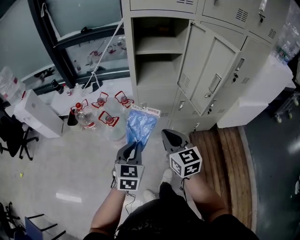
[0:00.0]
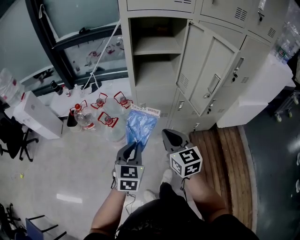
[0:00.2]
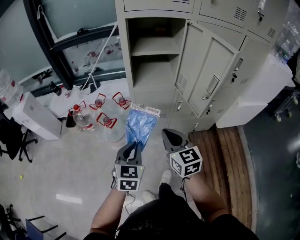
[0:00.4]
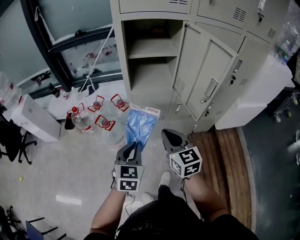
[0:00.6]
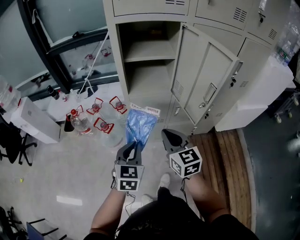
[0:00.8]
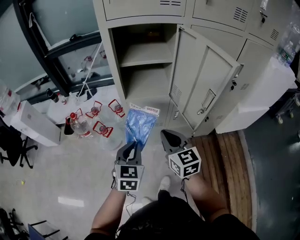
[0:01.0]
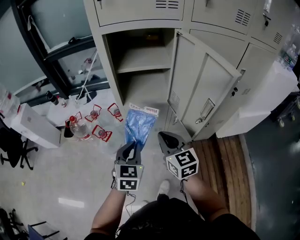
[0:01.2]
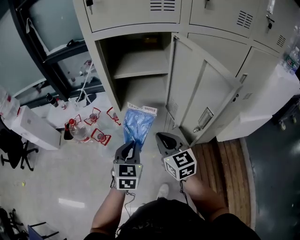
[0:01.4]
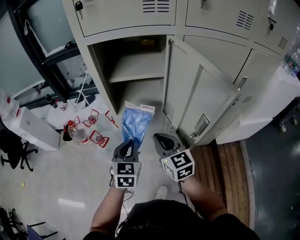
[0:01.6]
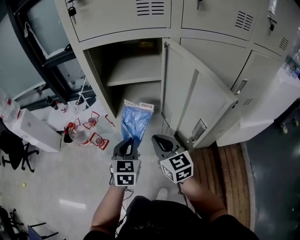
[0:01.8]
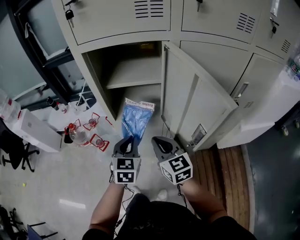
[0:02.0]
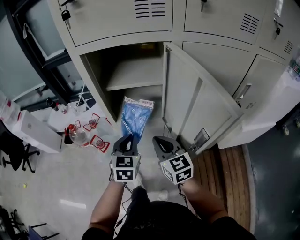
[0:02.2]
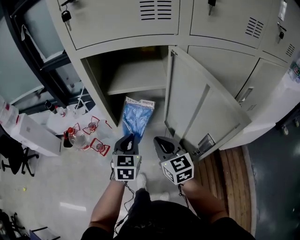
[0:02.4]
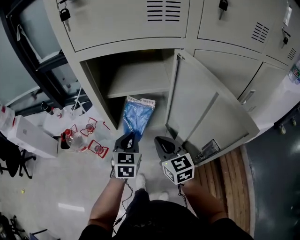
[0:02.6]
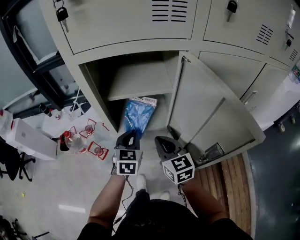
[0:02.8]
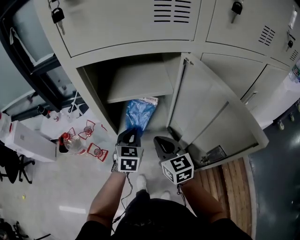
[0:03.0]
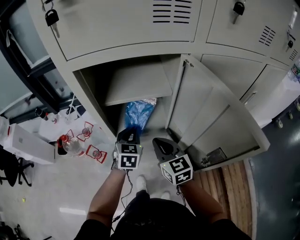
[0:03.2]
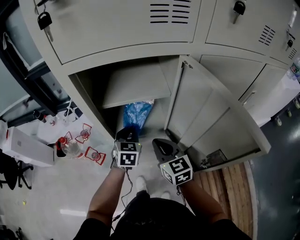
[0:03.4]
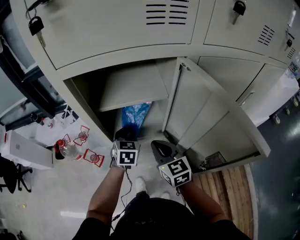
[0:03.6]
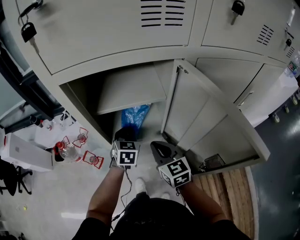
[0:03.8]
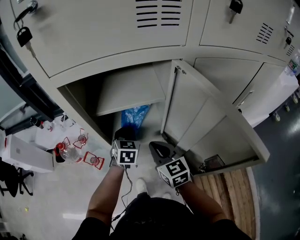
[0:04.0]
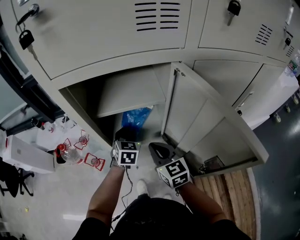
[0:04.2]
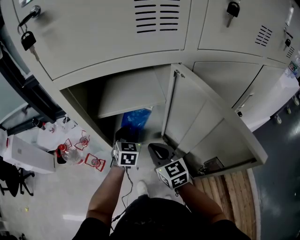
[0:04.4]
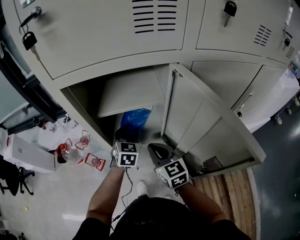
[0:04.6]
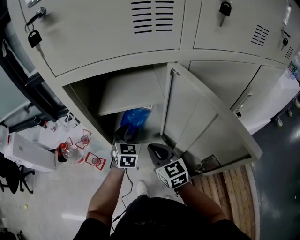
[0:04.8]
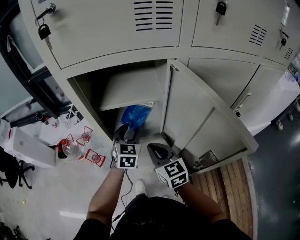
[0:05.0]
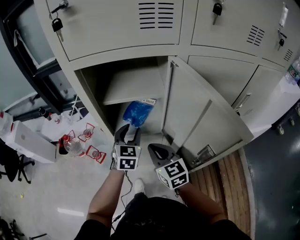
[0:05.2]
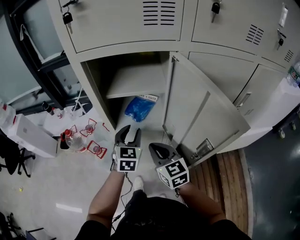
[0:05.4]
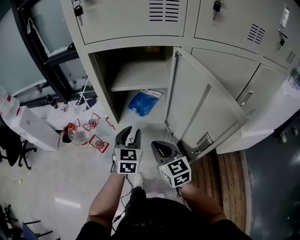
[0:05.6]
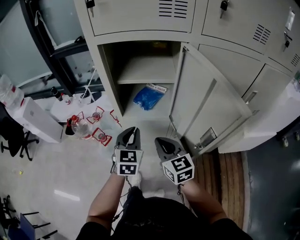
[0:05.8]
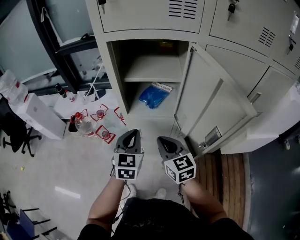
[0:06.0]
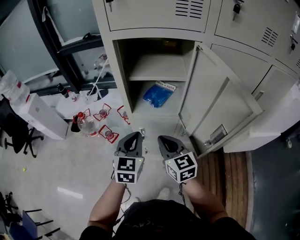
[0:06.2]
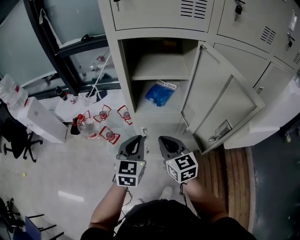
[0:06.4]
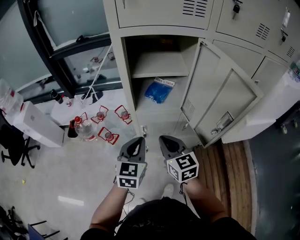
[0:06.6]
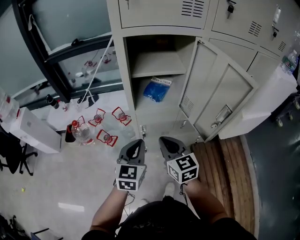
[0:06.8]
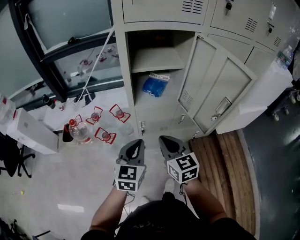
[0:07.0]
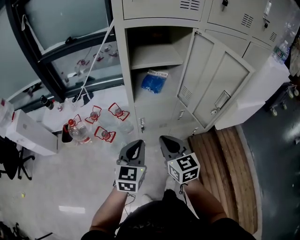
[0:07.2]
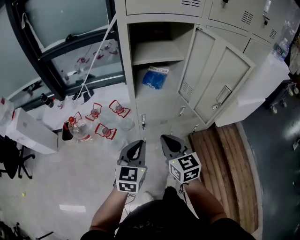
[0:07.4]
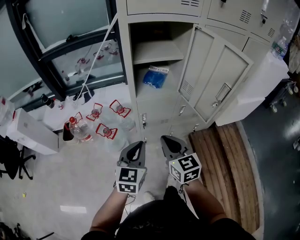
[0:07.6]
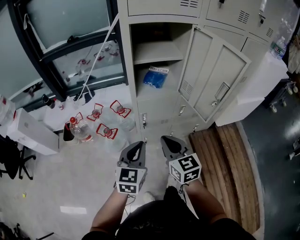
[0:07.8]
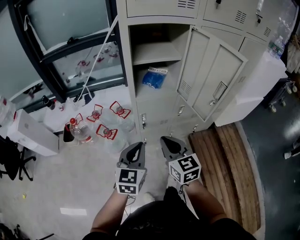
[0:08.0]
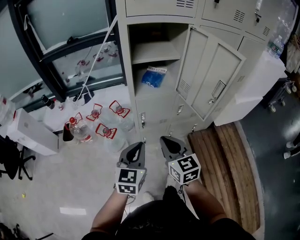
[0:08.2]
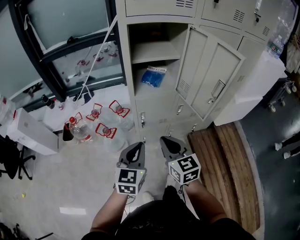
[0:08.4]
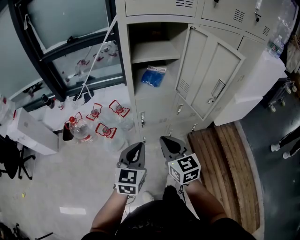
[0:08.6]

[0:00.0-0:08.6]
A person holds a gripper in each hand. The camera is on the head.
0:00.0 to 0:01.4: Both grippers travel together forward and to the right, roughly 20 cm.
0:01.4 to 0:02.8: The right gripper travels forward by roughly 10 cm; the left gripper is displaced forward by roughly 15 cm.
0:02.8 to 0:04.4: The left gripper travels forward by roughly 10 cm, and opens.
0:04.4 to 0:05.8: The right gripper heads backward, covering approximately 10 cm. The left gripper travels backward by roughly 15 cm, and closes.
0:05.8 to 0:07.2: The right gripper goes some 15 cm to the left and backward, while the left gripper travels backward and to the left by roughly 15 cm.
0:07.2 to 0:08.6: Both grippers move backward, roughly 5 cm.

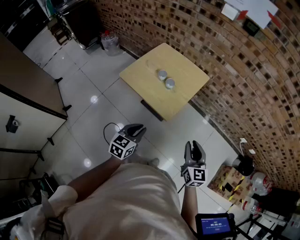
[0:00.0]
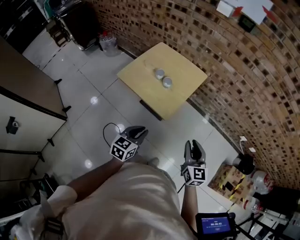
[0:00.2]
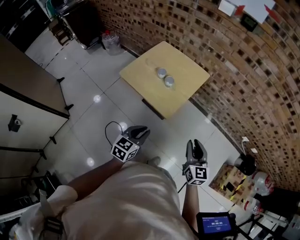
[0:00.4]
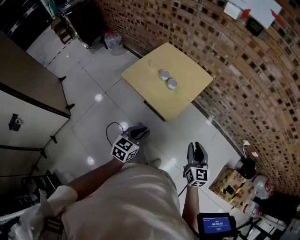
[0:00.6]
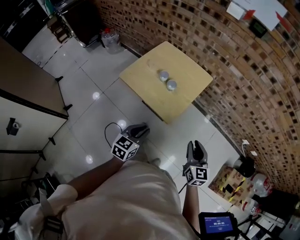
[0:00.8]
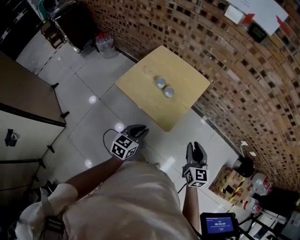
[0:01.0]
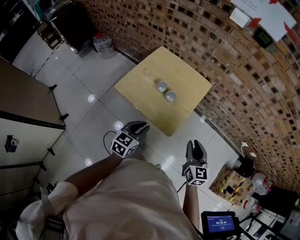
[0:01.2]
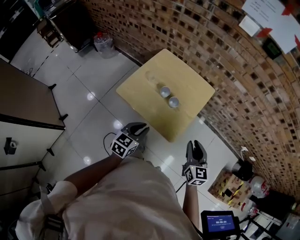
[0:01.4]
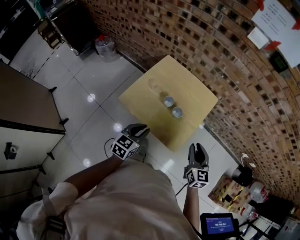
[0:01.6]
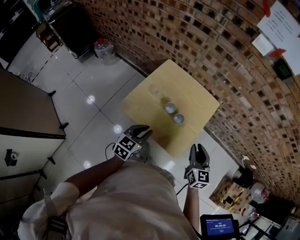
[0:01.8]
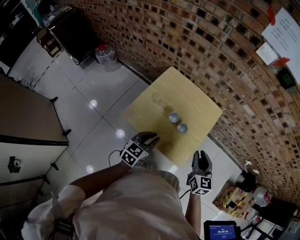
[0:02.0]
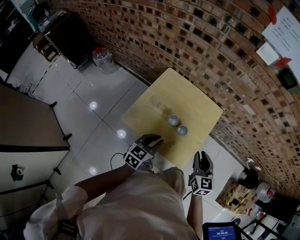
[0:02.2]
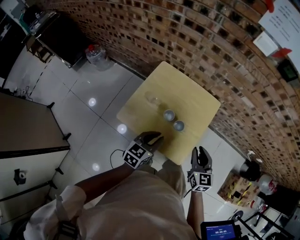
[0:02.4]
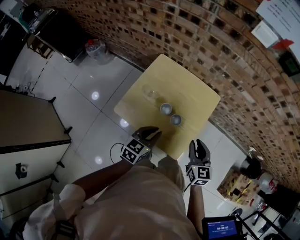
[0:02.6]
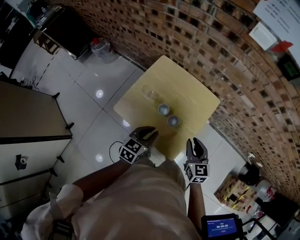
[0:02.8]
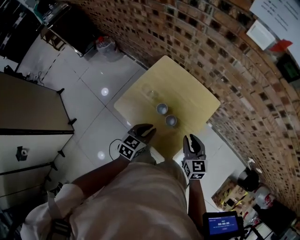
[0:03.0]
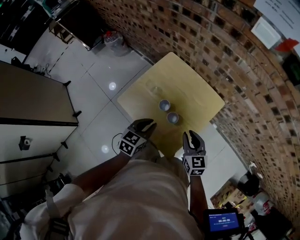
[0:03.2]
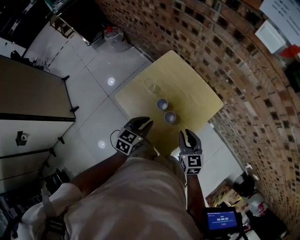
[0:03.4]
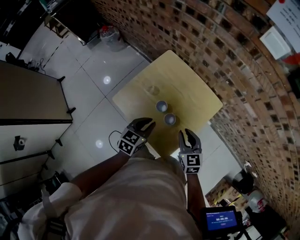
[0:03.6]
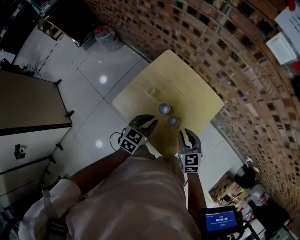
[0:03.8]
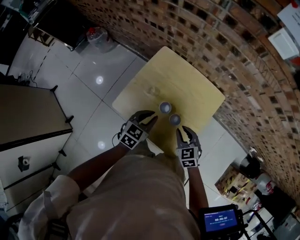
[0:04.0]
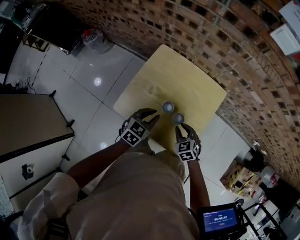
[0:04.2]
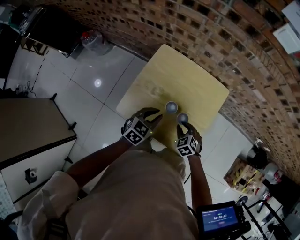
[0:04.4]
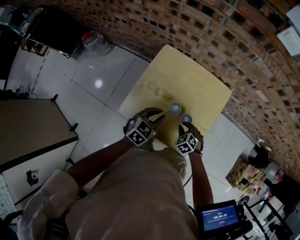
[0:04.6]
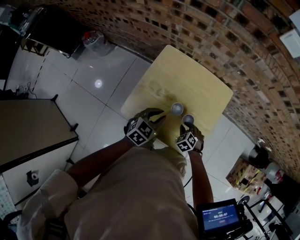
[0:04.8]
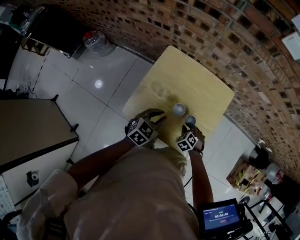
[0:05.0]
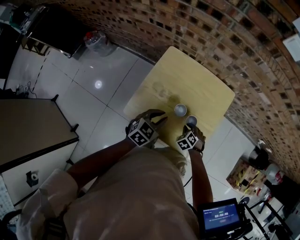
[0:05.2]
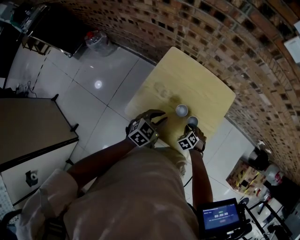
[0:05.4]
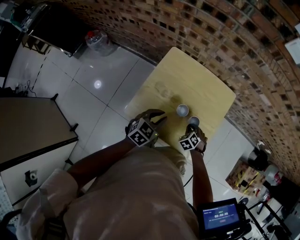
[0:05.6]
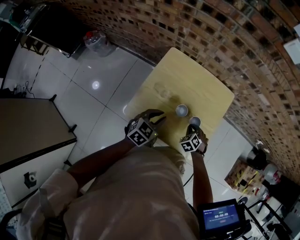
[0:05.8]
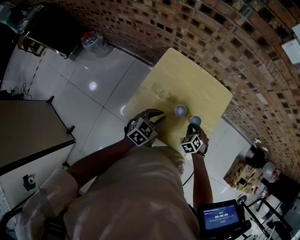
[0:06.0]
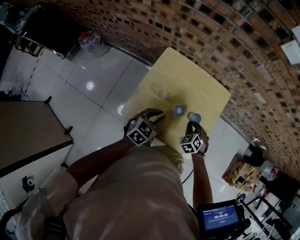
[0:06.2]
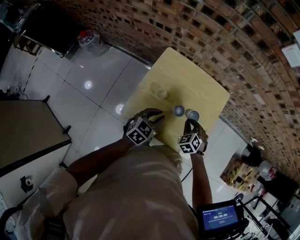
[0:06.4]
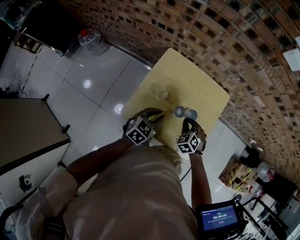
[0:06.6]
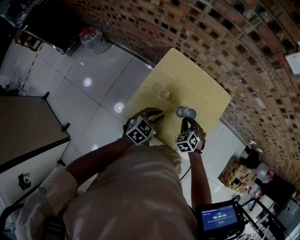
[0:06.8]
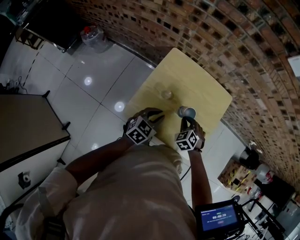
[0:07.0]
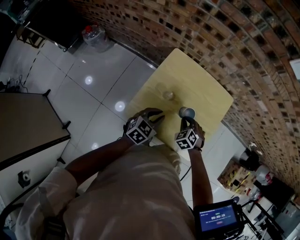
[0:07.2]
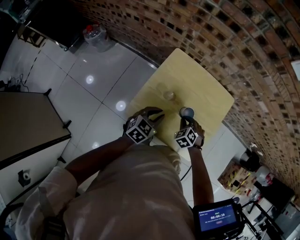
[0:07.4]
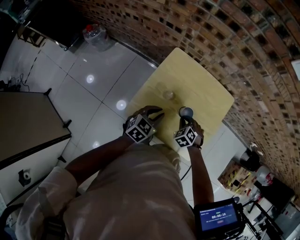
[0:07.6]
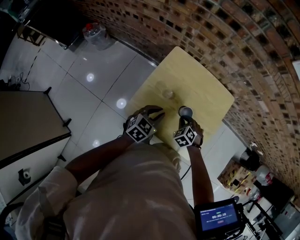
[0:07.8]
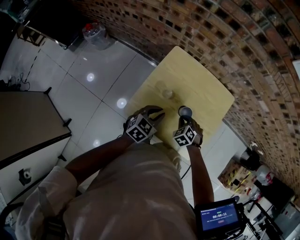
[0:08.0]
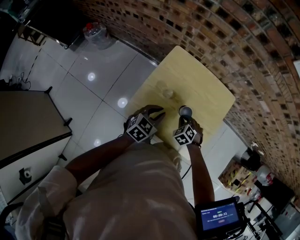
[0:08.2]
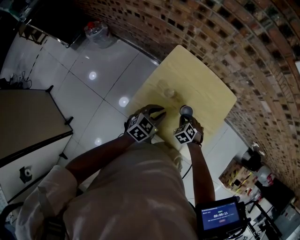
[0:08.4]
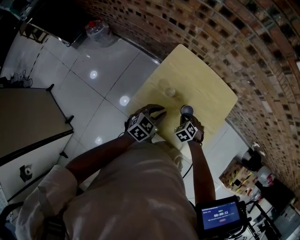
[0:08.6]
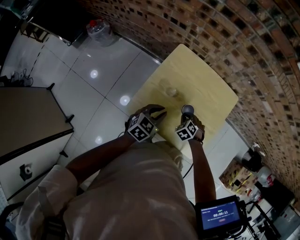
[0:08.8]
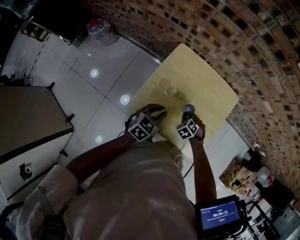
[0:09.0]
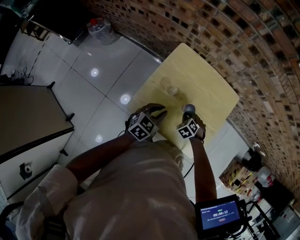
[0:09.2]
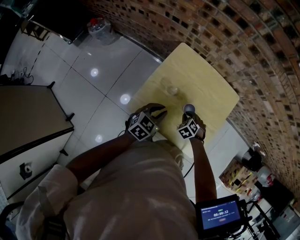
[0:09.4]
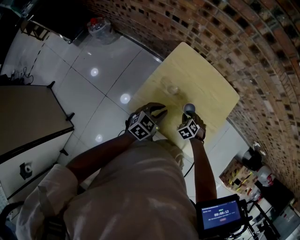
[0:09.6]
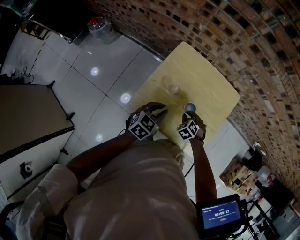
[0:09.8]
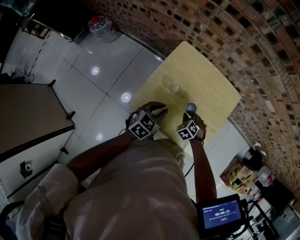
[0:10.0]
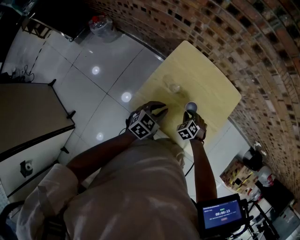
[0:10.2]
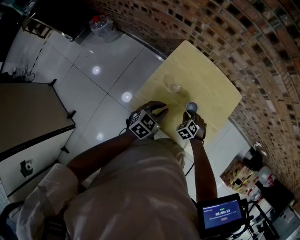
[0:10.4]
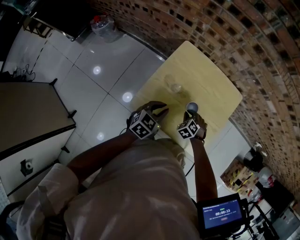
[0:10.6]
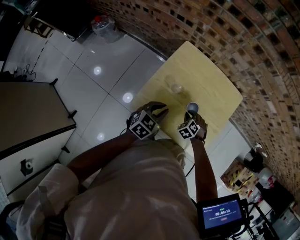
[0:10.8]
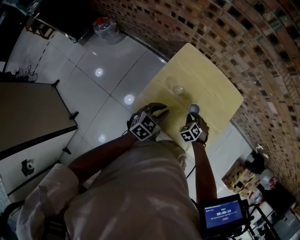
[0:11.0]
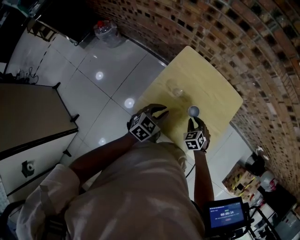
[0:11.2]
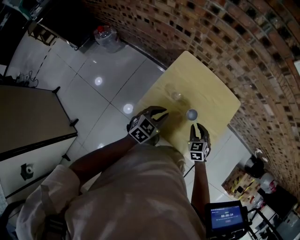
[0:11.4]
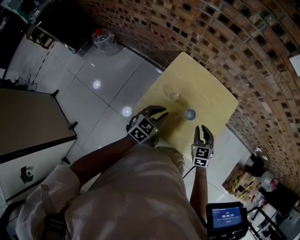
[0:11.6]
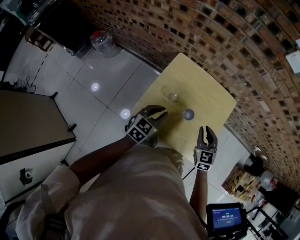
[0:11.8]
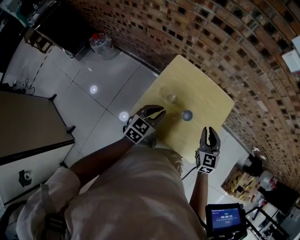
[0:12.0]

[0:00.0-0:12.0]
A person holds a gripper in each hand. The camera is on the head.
0:00.0 to 0:01.6: Both grippers move forward and to the left, roughly 25 cm.
0:01.6 to 0:03.0: The left gripper is displaced forward and to the right by about 15 cm. Meanwhile the right gripper moves forward, some 15 cm.
0:03.0 to 0:04.4: The left gripper goes roughly 10 cm forward and to the left, and changes its angle by some 20 degrees. The right gripper goes some 20 cm downward and to the left, and angles its fingers downward, by some 30 degrees.
0:06.0 to 0:07.6: The right gripper heads to the left, covering some 10 cm.
0:07.6 to 0:10.4: The grippers stay close to where they were, moving slightly.
0:10.4 to 0:12.0: The right gripper heads upward, covering roughly 25 cm, and angles its fingers upward, by approximately 40 degrees, while the left gripper is displaced upward by approximately 5 cm.

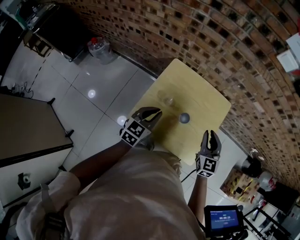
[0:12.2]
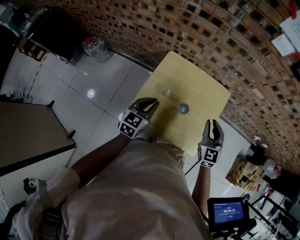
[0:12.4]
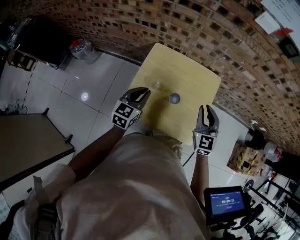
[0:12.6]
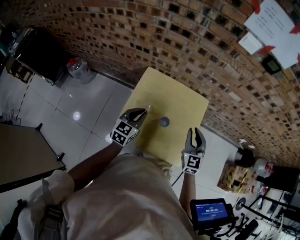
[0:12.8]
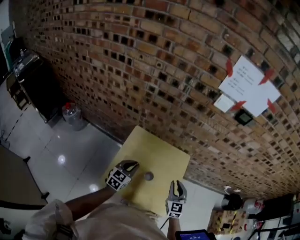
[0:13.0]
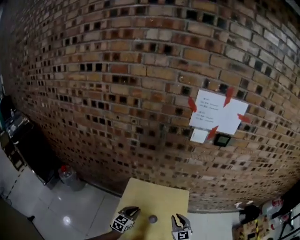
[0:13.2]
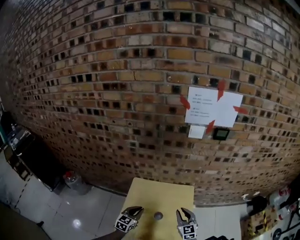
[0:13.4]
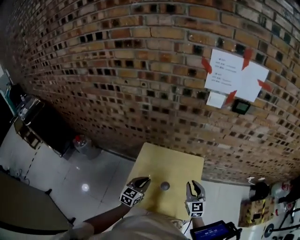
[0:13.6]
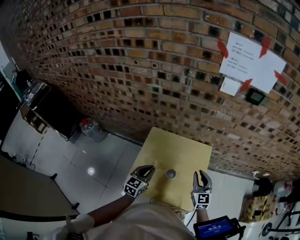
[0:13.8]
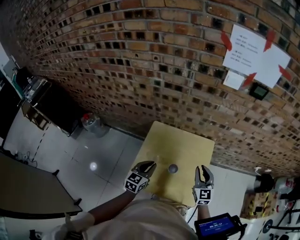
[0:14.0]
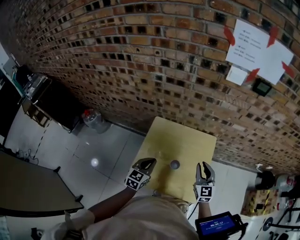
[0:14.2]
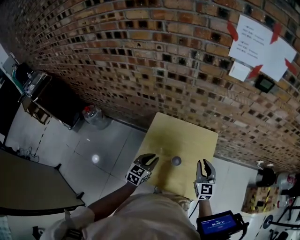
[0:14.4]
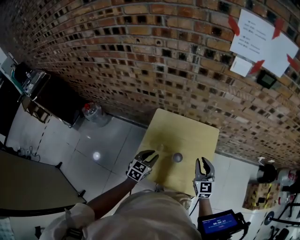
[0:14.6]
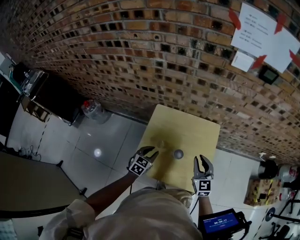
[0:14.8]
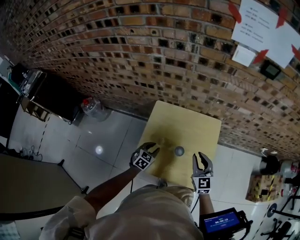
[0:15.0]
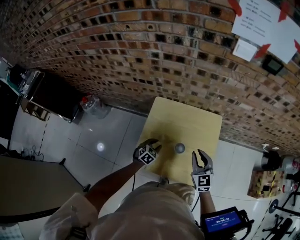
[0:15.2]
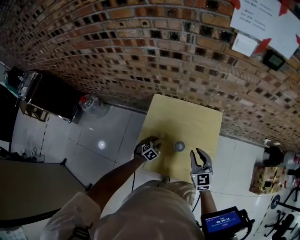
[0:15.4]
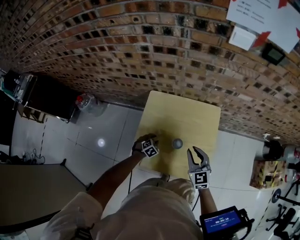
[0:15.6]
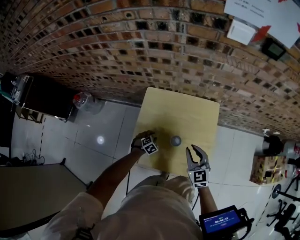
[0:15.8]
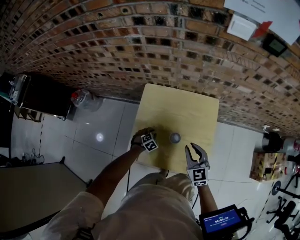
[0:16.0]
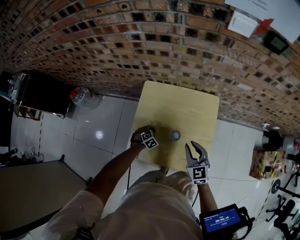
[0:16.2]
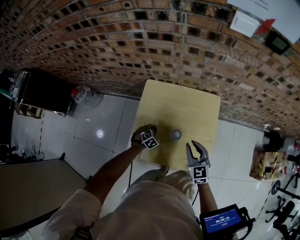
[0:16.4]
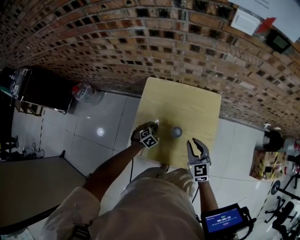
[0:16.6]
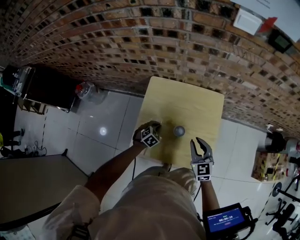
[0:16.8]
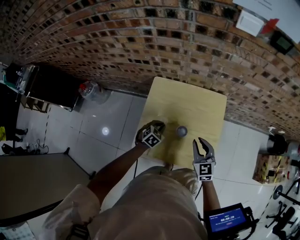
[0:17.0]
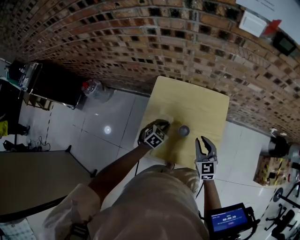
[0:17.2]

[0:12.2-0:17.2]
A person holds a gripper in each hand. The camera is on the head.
0:12.2 to 0:13.8: The left gripper shifts by approximately 5 cm, while the right gripper ends up approximately 5 cm from where it was.
0:13.8 to 0:15.6: The left gripper shifts approximately 30 cm downward, angles its fingers downward, by roughly 40 degrees, and opens up. The right gripper travels to the left and downward by approximately 10 cm.
0:15.6 to 0:17.2: The left gripper travels upward by roughly 15 cm, and closes up.
